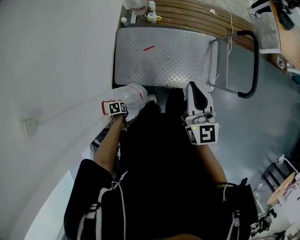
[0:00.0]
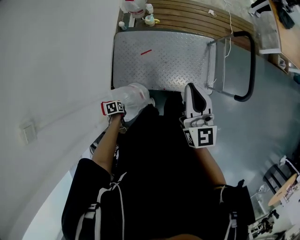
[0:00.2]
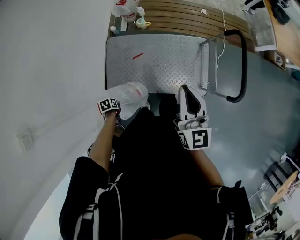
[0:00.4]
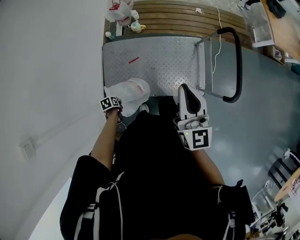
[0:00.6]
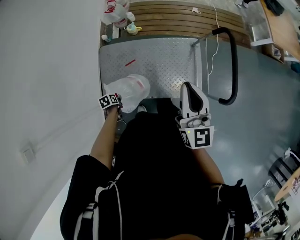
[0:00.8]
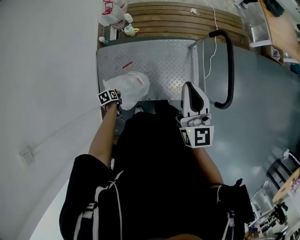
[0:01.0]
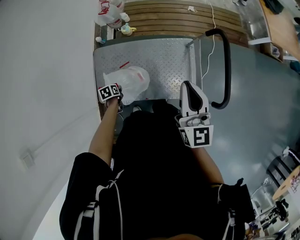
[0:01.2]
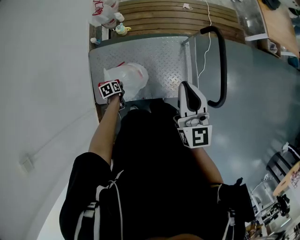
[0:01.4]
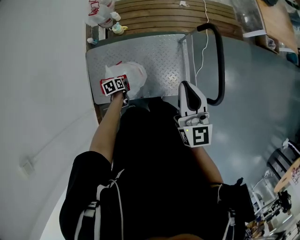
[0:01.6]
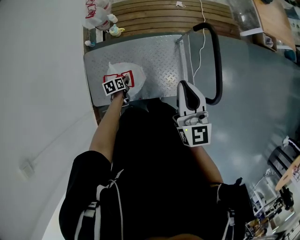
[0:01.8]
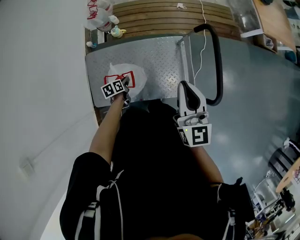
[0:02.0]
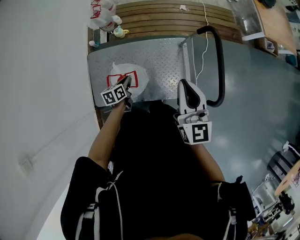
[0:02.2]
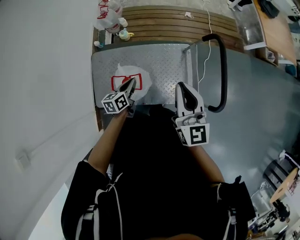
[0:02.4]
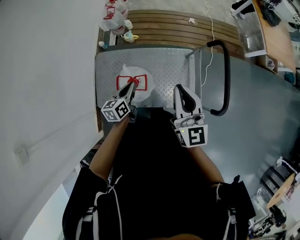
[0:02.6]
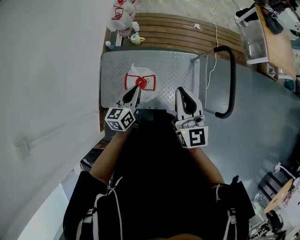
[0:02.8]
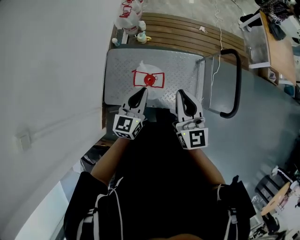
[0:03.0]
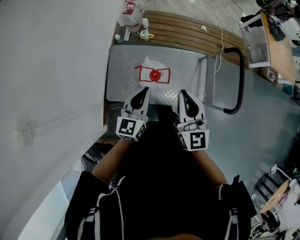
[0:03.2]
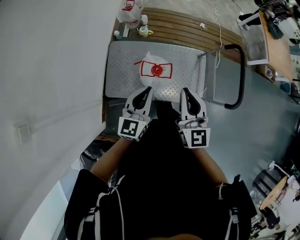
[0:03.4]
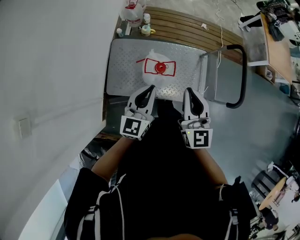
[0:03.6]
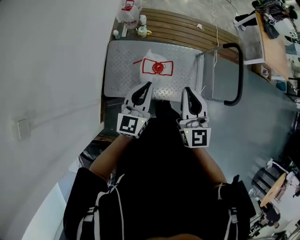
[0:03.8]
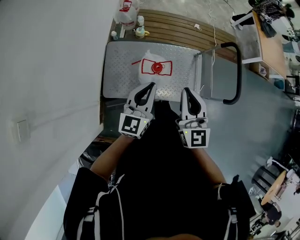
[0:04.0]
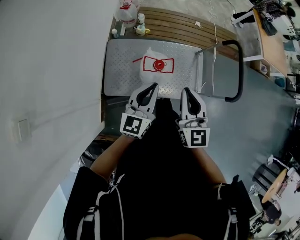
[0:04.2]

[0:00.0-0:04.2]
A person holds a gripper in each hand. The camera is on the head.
0:00.0 to 0:01.4: The left gripper ends up some 40 cm from where it was. Meanwhile the right gripper changes place by roughly 25 cm.
0:01.4 to 0:02.8: The right gripper travels to the left by roughly 10 cm. Meanwhile the left gripper is displaced upward by about 25 cm, and tilts its fingers approximately 50 degrees upward.
0:02.8 to 0:04.2: The right gripper heads to the left and backward, covering some 20 cm. The left gripper shifts roughly 15 cm backward, upward and to the left, and swivels about 20 degrees.

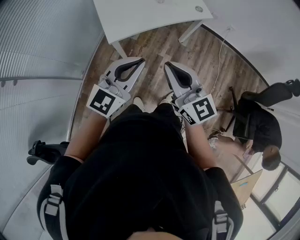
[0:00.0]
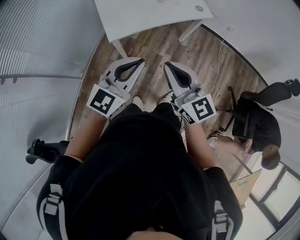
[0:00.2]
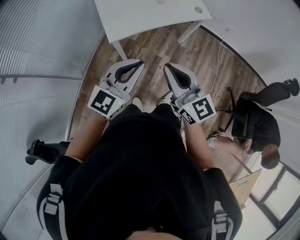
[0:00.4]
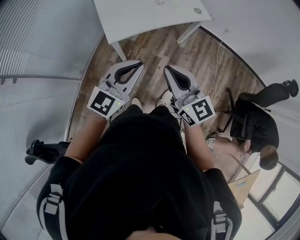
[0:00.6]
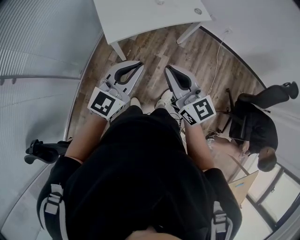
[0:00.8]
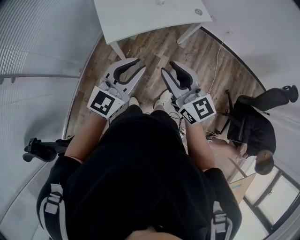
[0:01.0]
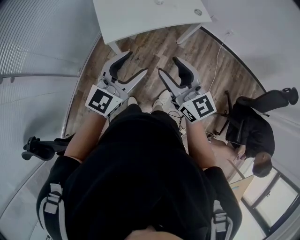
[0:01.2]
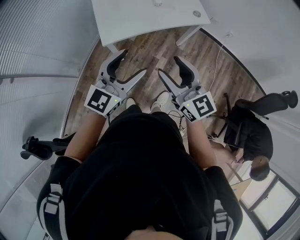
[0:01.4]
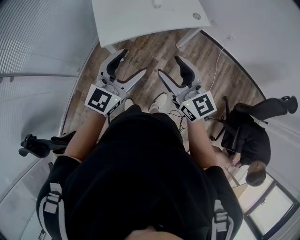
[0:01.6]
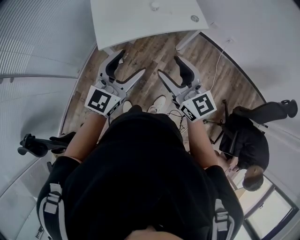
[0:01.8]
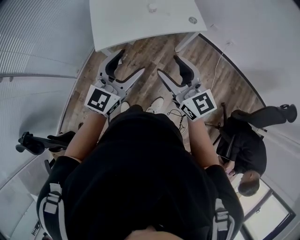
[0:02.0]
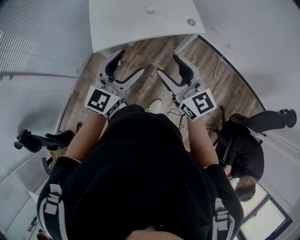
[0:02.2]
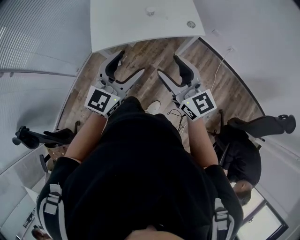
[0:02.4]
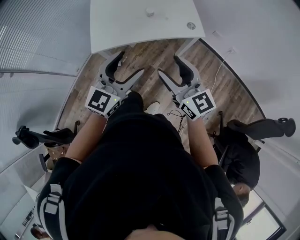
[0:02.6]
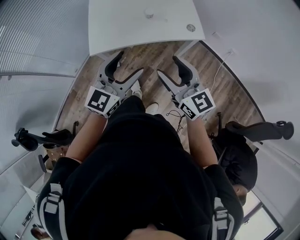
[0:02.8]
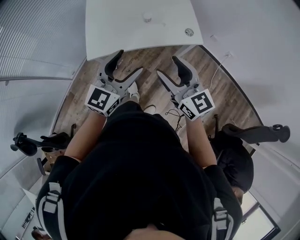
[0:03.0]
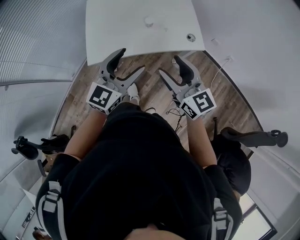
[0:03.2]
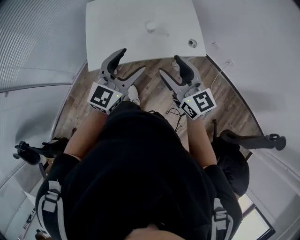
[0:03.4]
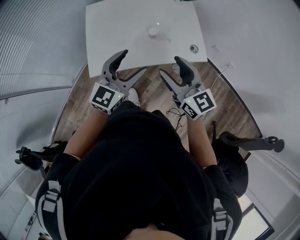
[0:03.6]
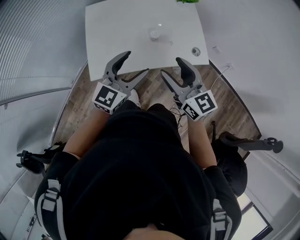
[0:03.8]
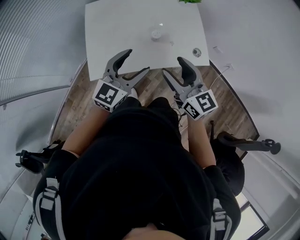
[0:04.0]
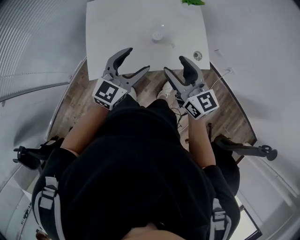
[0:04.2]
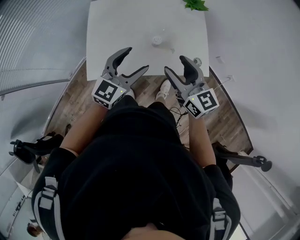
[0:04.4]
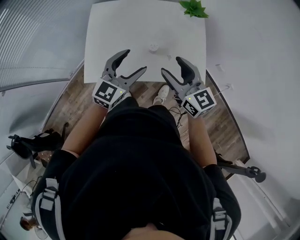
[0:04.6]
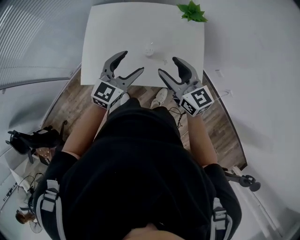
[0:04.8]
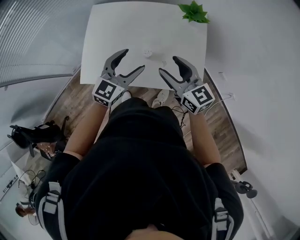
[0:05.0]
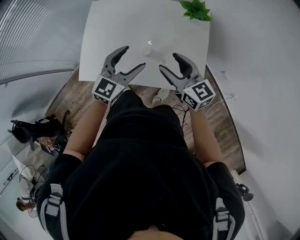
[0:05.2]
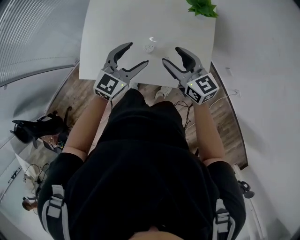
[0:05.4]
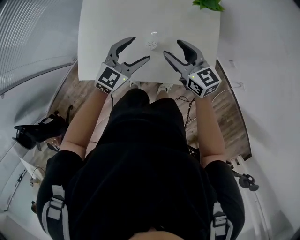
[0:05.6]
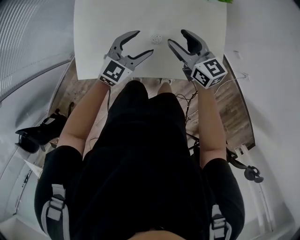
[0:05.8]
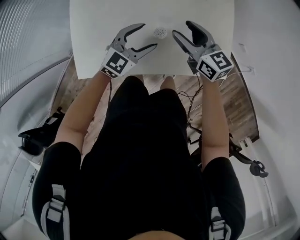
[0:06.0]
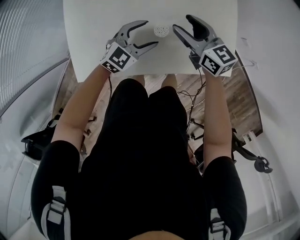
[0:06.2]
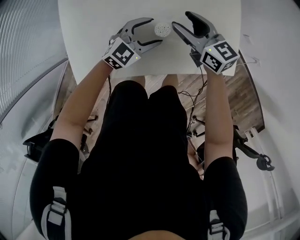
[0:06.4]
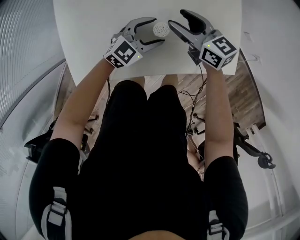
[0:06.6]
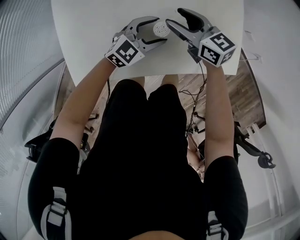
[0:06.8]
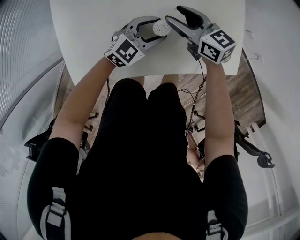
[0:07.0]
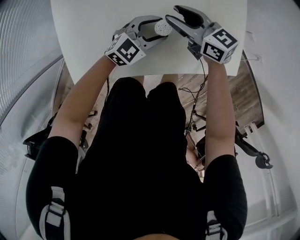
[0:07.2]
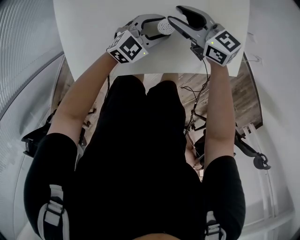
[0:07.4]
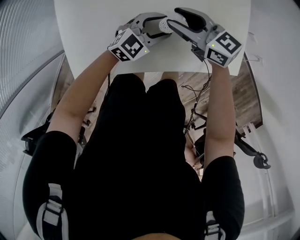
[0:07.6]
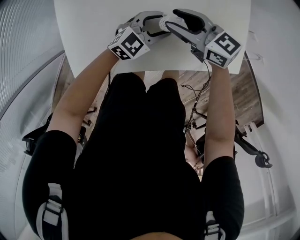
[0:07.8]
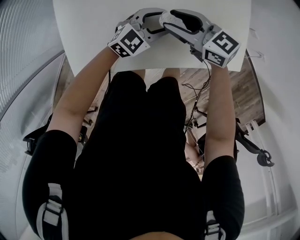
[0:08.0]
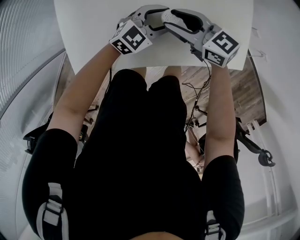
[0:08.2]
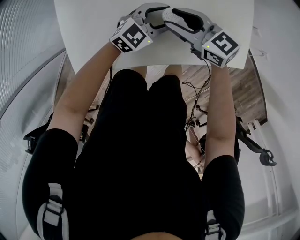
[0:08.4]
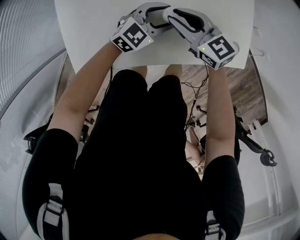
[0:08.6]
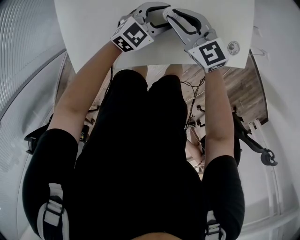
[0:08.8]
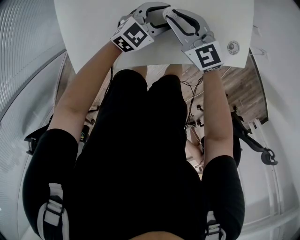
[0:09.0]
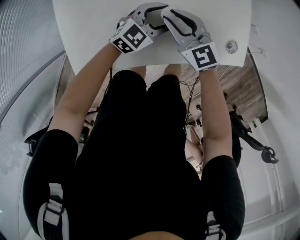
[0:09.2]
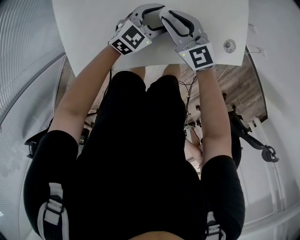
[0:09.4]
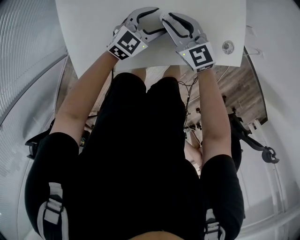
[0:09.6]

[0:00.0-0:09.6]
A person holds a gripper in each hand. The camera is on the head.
0:00.0 to 0:01.6: The left gripper is displaced forward by some 5 cm, and opens up. The right gripper travels to the right and forward by roughly 10 cm, and opens up.
0:01.6 to 0:03.2: The grippers both shift forward and to the right by some 20 cm.
0:03.2 to 0:04.8: Both grippers move forward, about 25 cm.
0:04.8 to 0:06.4: The left gripper travels downward by roughly 25 cm, and changes its angle by about 30 degrees, while the right gripper is displaced downward and forward by approximately 25 cm.
0:06.4 to 0:08.0: The right gripper changes place by roughly 5 cm.
0:08.0 to 0:09.6: The right gripper changes its angle by roughly 30 degrees.

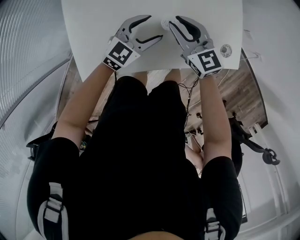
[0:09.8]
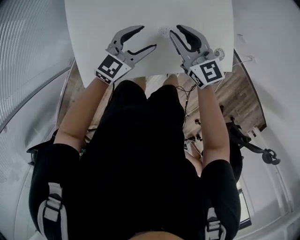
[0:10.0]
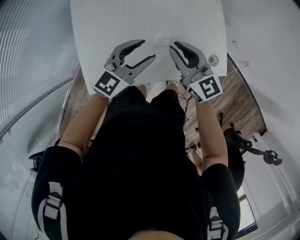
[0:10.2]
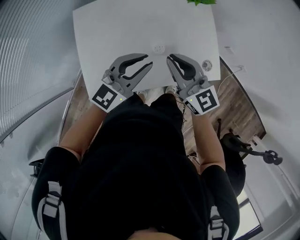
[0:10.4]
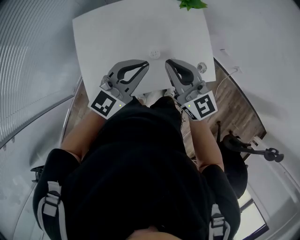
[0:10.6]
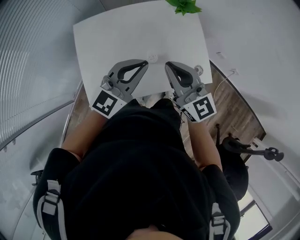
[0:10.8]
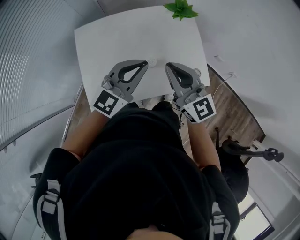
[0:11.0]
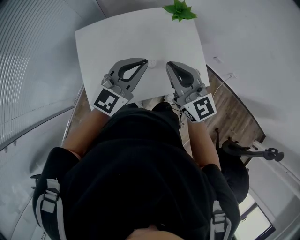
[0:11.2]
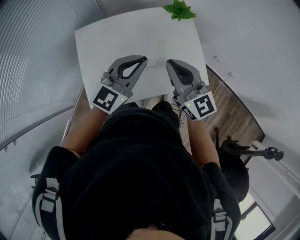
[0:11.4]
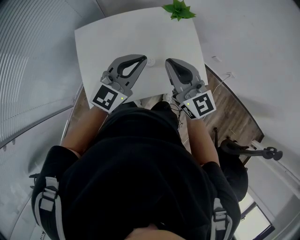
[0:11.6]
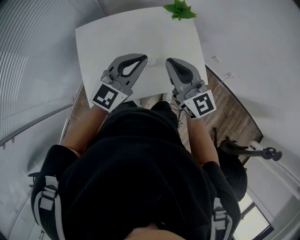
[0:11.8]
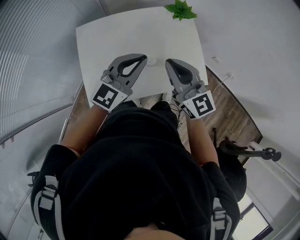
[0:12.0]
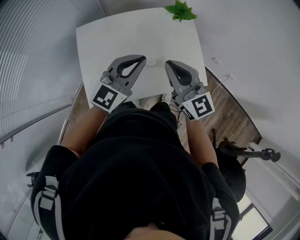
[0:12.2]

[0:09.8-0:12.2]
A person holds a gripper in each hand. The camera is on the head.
0:09.8 to 0:11.0: The grippers both shift upward by approximately 25 cm. The right gripper closes its fingers; the left gripper turns by some 20 degrees, and closes up.
0:11.0 to 0:12.2: The grippers move only a little.

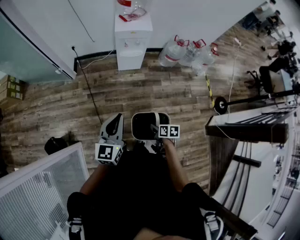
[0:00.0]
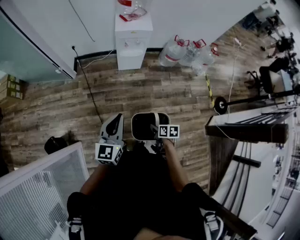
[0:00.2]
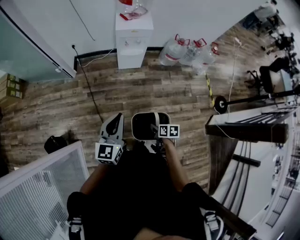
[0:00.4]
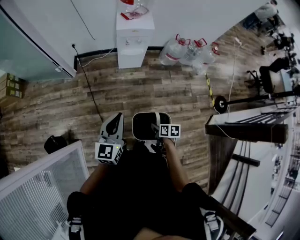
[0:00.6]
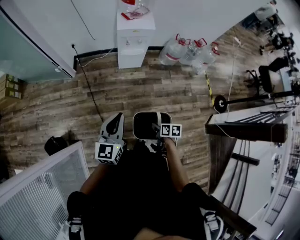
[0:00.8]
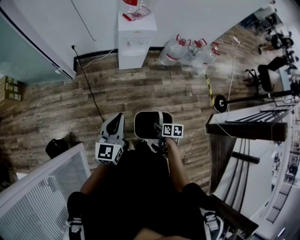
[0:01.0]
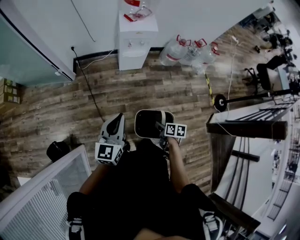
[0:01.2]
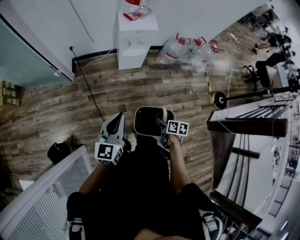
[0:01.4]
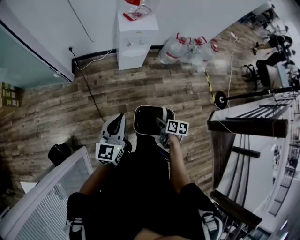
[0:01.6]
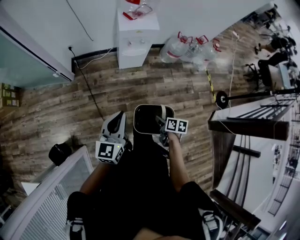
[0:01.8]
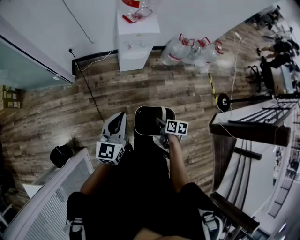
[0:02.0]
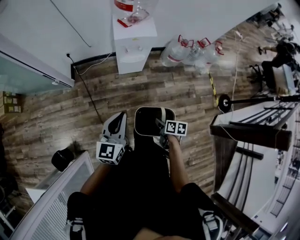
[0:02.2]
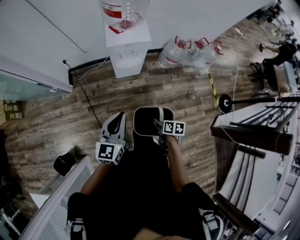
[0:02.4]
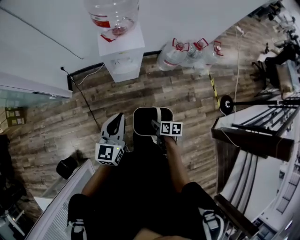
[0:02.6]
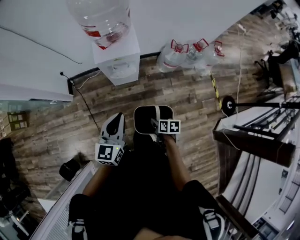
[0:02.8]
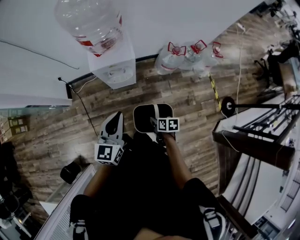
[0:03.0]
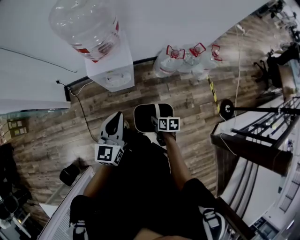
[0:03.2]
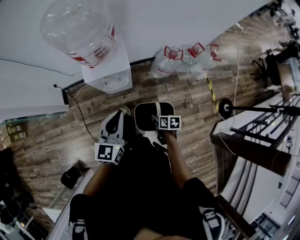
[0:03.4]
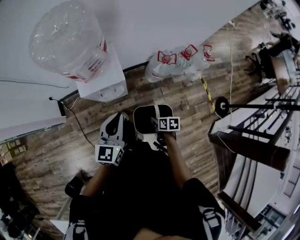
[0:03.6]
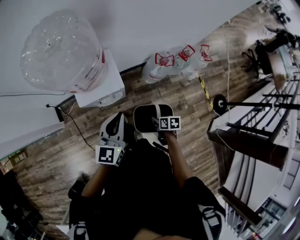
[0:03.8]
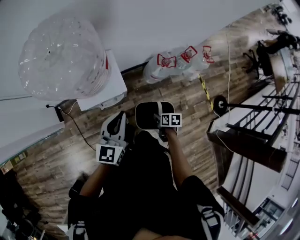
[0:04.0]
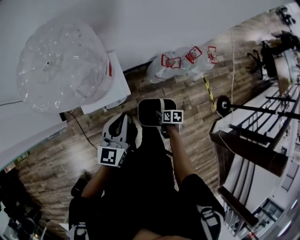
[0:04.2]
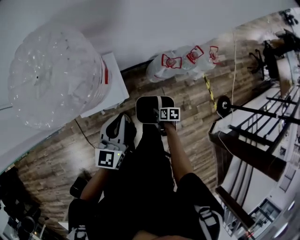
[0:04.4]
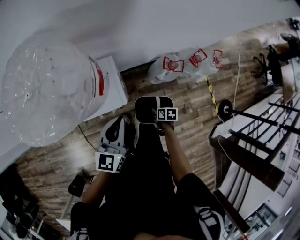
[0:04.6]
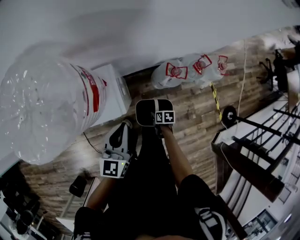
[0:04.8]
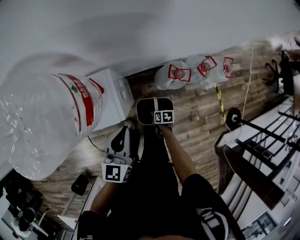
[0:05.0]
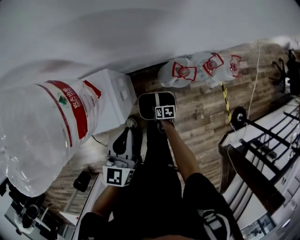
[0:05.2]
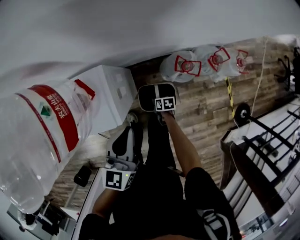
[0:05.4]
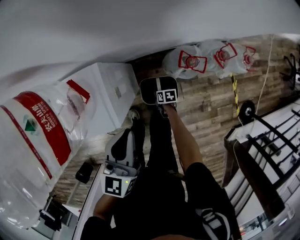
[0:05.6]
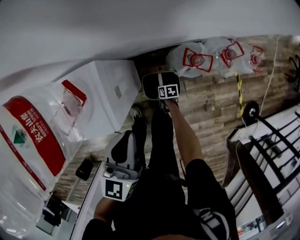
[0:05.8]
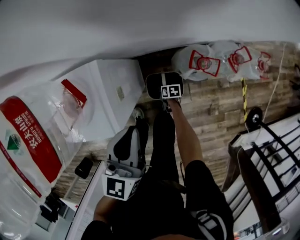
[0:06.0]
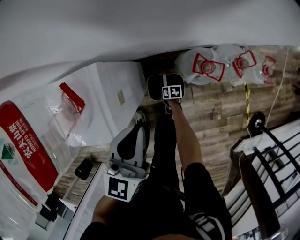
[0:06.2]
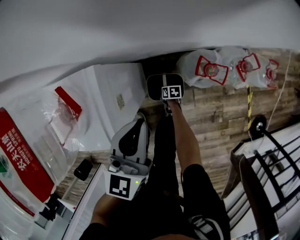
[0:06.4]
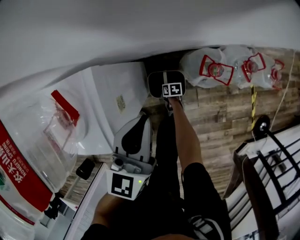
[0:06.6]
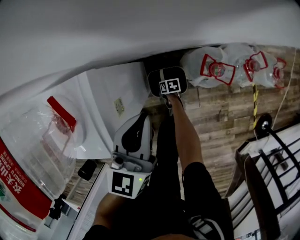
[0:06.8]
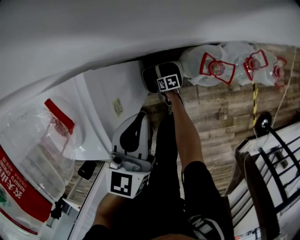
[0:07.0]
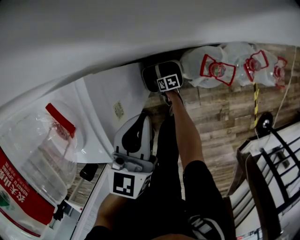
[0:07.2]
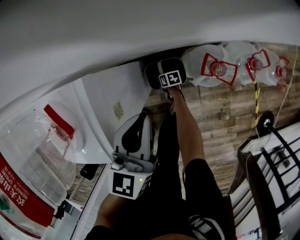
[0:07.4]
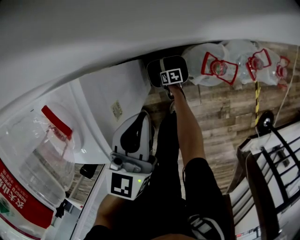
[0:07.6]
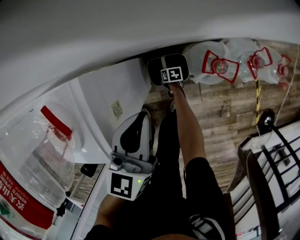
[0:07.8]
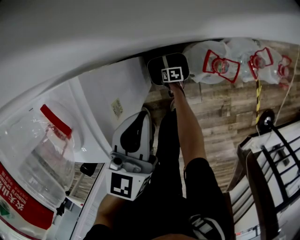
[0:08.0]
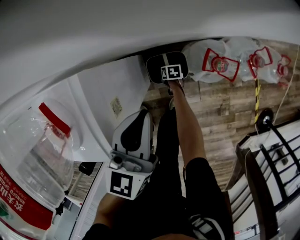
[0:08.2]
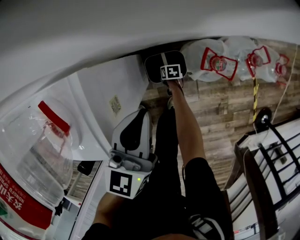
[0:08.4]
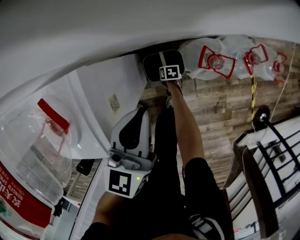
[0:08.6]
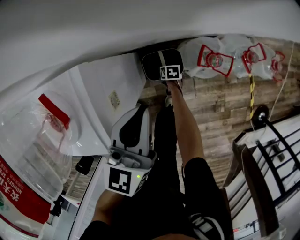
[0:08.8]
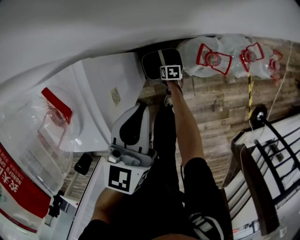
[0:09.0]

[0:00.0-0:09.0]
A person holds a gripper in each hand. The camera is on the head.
0:00.0 to 0:01.6: The right gripper goes some 10 cm forward. Meanwhile the left gripper travels forward and to the left by approximately 10 cm.
0:01.6 to 0:03.0: Both grippers move forward and to the right, some 35 cm.
0:03.0 to 0:04.4: The right gripper travels forward and to the right by roughly 25 cm. The left gripper heads forward, covering some 25 cm.
0:04.4 to 0:06.0: The right gripper moves downward and forward, some 35 cm. Meanwhile the left gripper moves to the right, downward and forward, some 20 cm.
0:06.0 to 0:07.6: The right gripper heads forward and downward, covering approximately 15 cm; the left gripper goes some 15 cm downward, to the right and forward.
0:07.6 to 0:09.0: The right gripper ends up about 5 cm from where it was, and opens.
